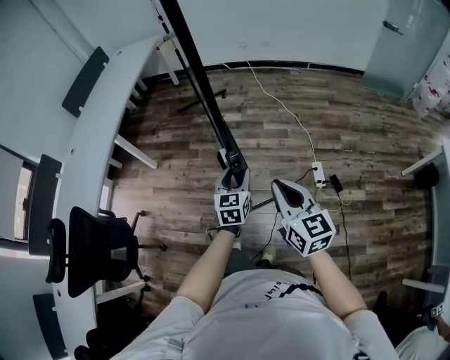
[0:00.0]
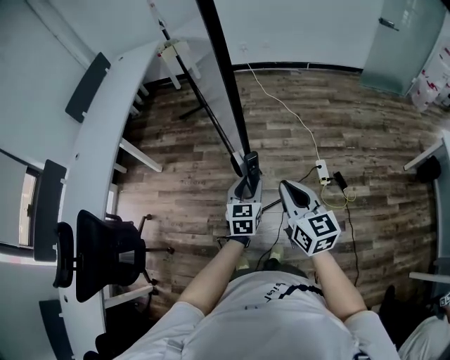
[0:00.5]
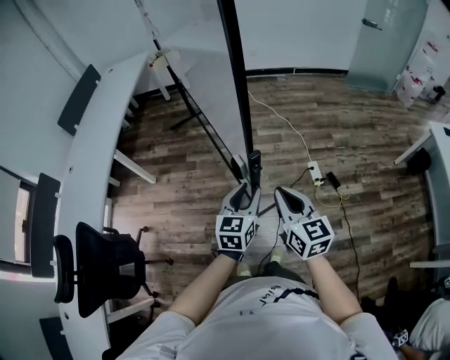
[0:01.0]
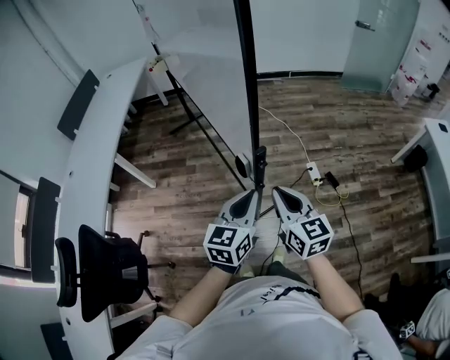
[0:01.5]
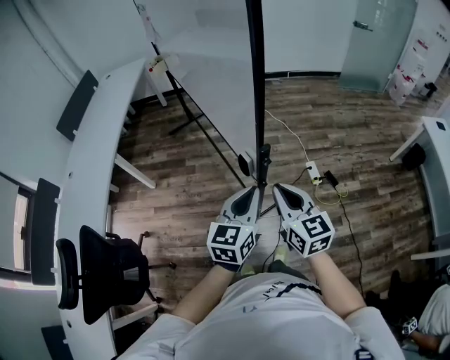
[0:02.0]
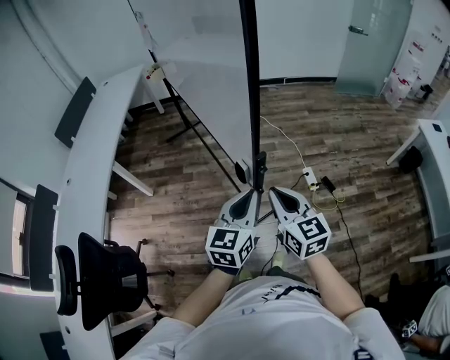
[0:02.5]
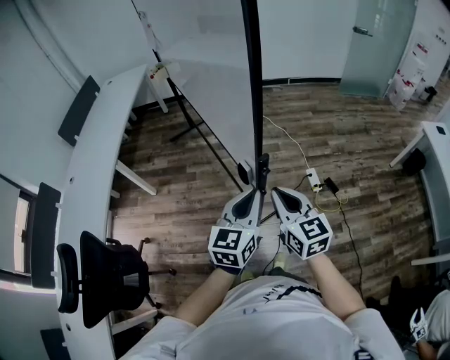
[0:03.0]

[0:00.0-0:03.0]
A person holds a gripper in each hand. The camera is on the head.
0:00.0 to 0:01.5: The left gripper moves backward and upward, approximately 20 cm, rotates roughly 20 degrees, and closes its fingers. The right gripper shifts about 10 cm to the left and backward.
0:01.5 to 0:03.0: There are only small adjustments of the grippers.

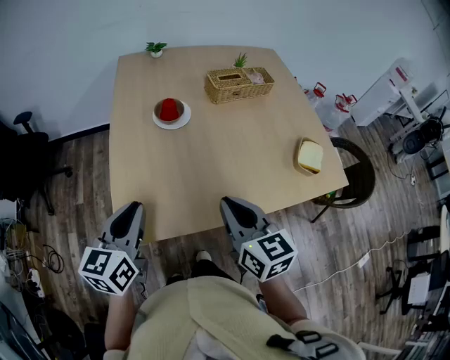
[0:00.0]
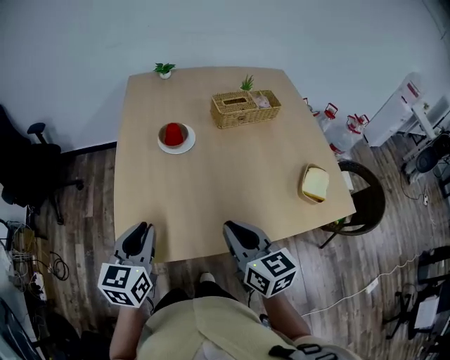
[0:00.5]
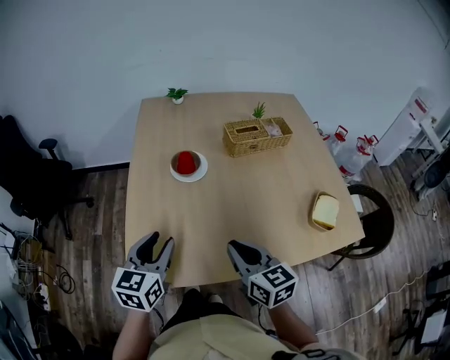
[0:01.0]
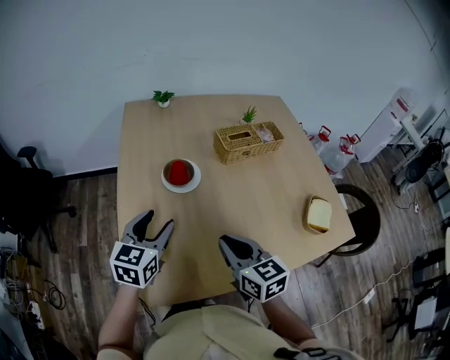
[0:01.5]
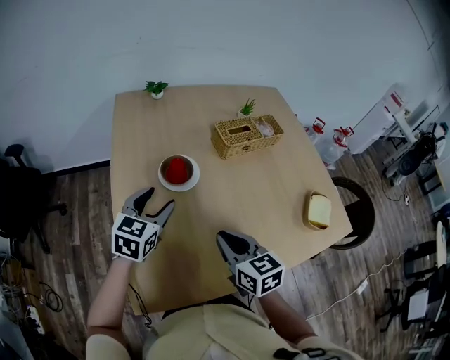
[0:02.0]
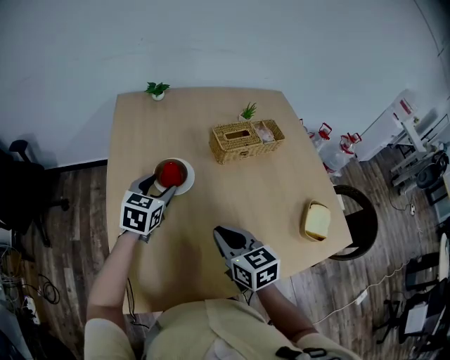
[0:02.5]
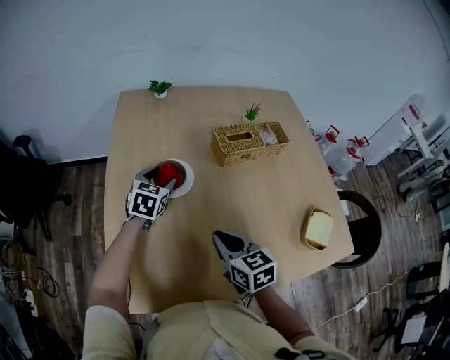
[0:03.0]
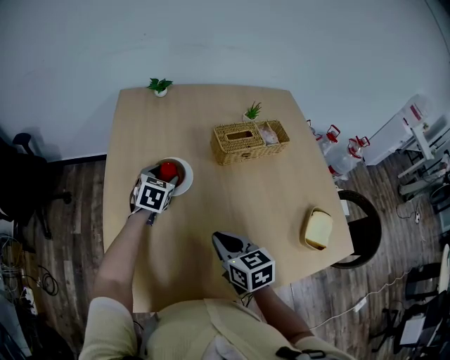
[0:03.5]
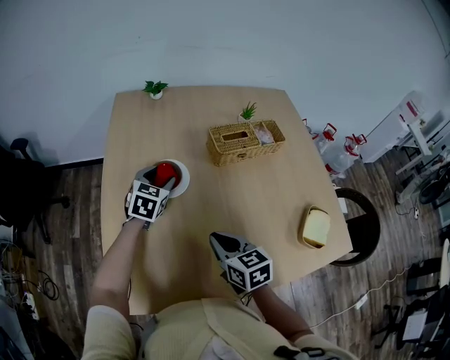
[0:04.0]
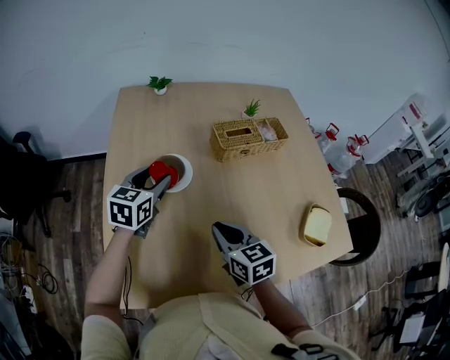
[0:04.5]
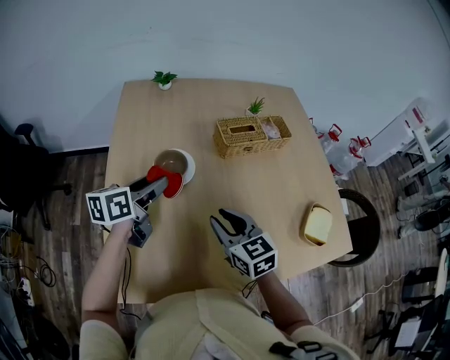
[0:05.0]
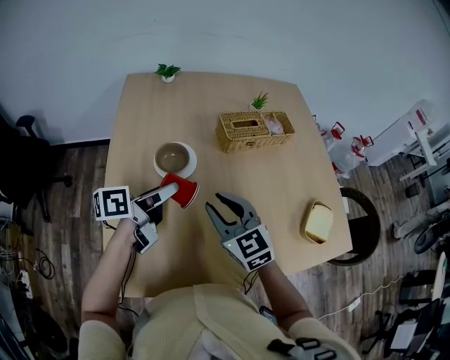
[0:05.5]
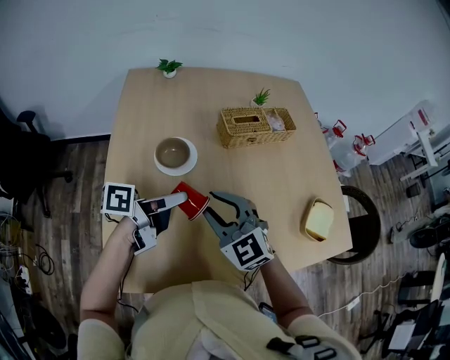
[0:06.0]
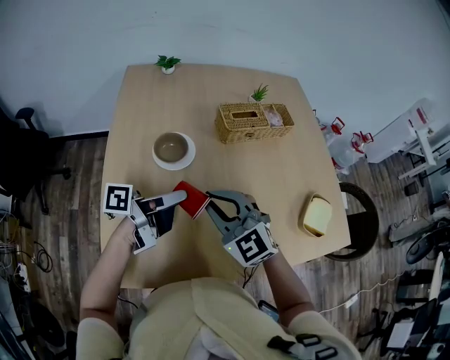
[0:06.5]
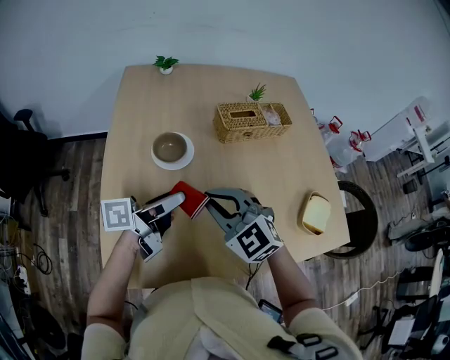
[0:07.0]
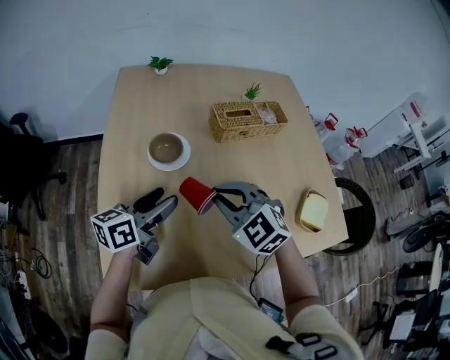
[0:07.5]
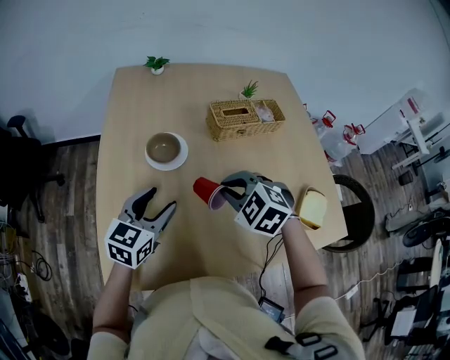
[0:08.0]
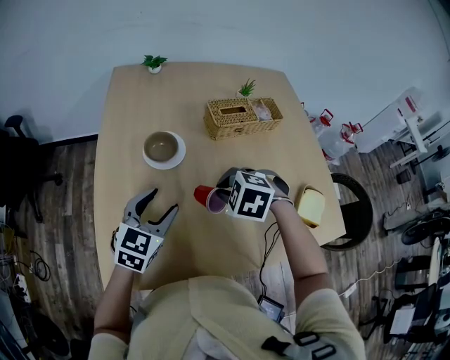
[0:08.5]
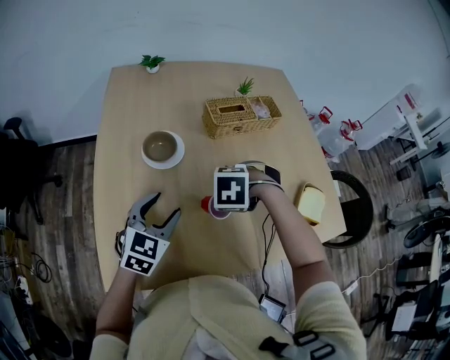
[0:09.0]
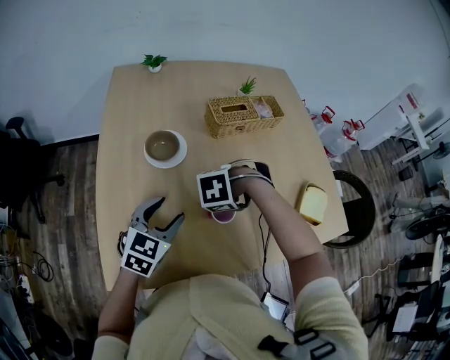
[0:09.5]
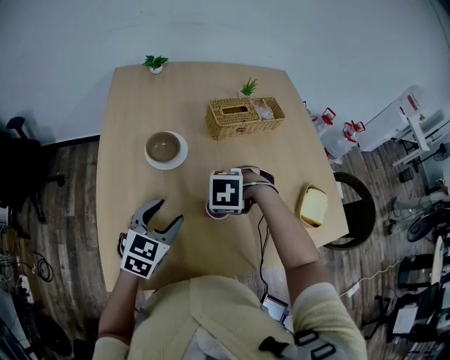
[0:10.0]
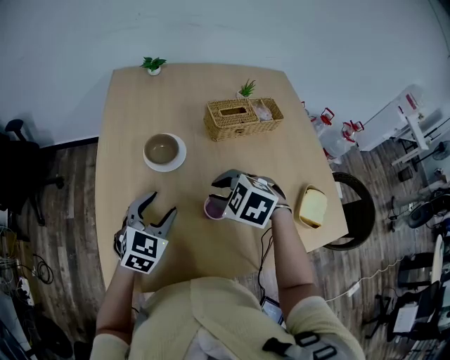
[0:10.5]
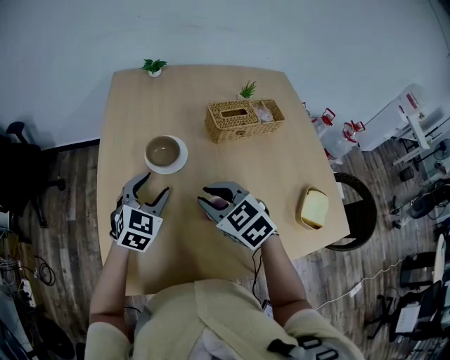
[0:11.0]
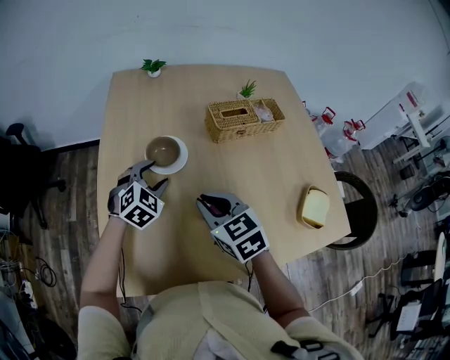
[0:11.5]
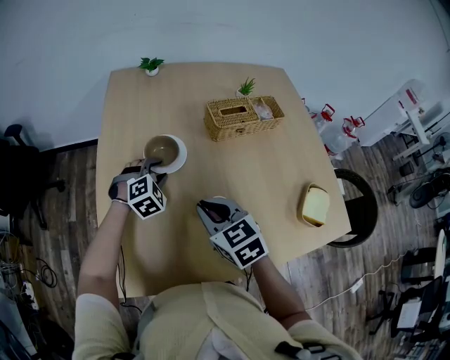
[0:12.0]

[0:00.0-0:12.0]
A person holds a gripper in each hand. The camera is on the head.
0:00.0 to 0:02.0: The left gripper travels forward by some 25 cm, changes its angle by roughly 20 degrees, and opens up; the right gripper goes about 15 cm forward.
0:02.0 to 0:04.0: The left gripper shifts approximately 15 cm forward, to the right and downward. Meanwhile the right gripper travels to the right by approximately 5 cm.
0:04.0 to 0:06.0: The right gripper heads upward, covering approximately 5 cm, rotates around the line of its fingers by about 40 degrees, counterclockwise from behind, and opens its fingers; the left gripper moves backward, approximately 15 cm, and rotates around the line of its fingers by roughly 70 degrees, counterclockwise from behind.
0:06.0 to 0:08.0: The right gripper goes roughly 5 cm to the right, angles its fingers downward, by approximately 30 degrees, and closes up. The left gripper twists some 60 degrees clockwise, seen from behind.
0:08.0 to 0:10.0: The right gripper travels downward by approximately 10 cm, and angles its fingers downward, by approximately 30 degrees. The left gripper ends up roughly 5 cm from where it was.
0:10.0 to 0:12.0: The left gripper changes place by about 15 cm, rolls clockwise, seen from behind, by approximately 40 degrees, and closes up. Meanwhile the right gripper is displaced upward by approximately 10 cm, and points its fingers about 50 degrees further upward.

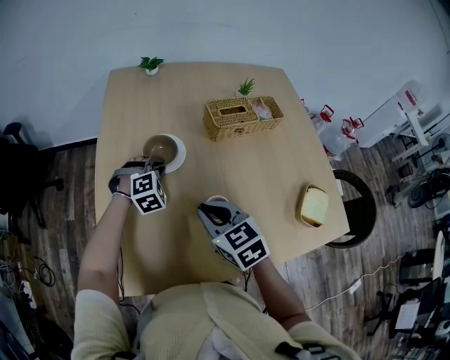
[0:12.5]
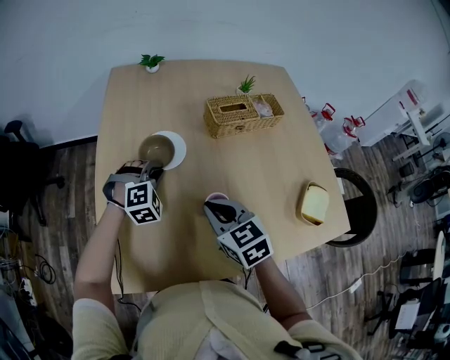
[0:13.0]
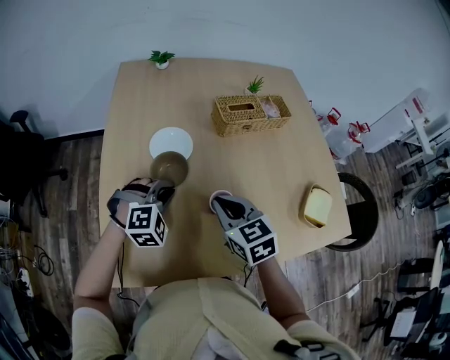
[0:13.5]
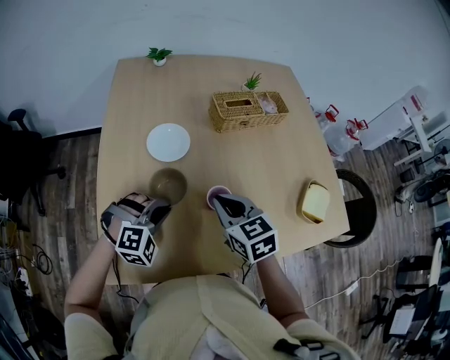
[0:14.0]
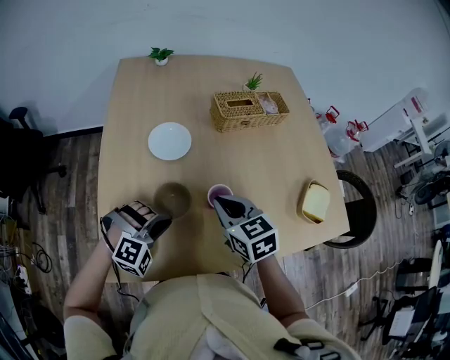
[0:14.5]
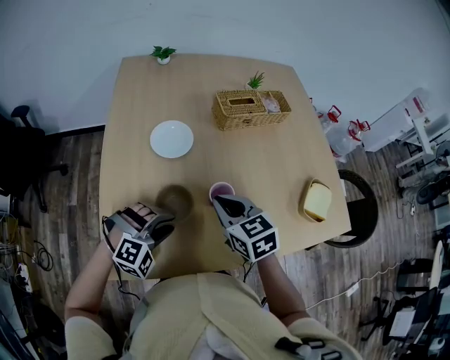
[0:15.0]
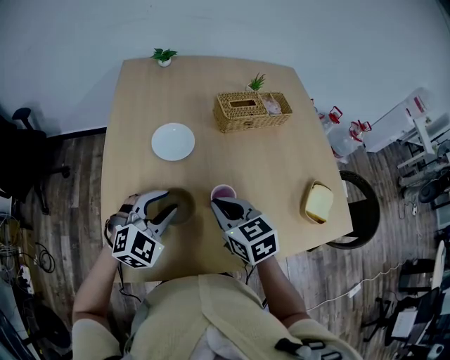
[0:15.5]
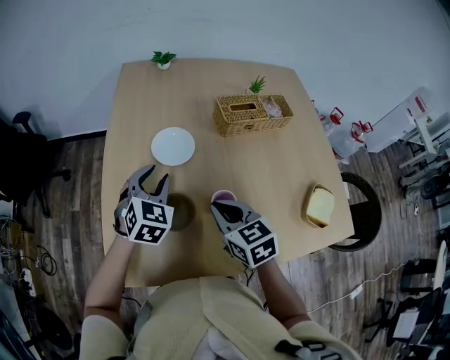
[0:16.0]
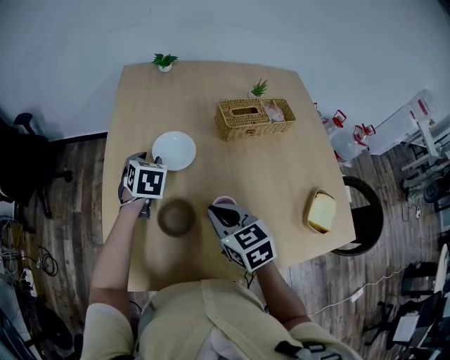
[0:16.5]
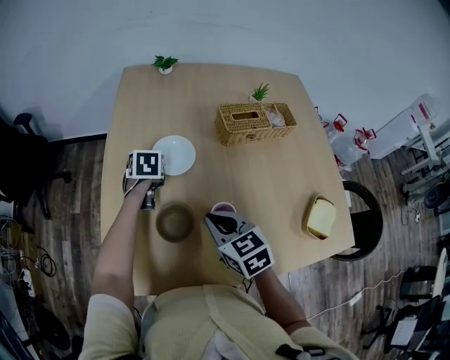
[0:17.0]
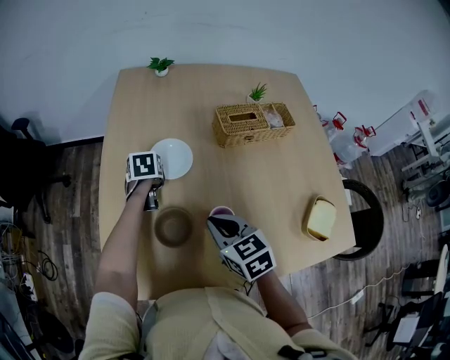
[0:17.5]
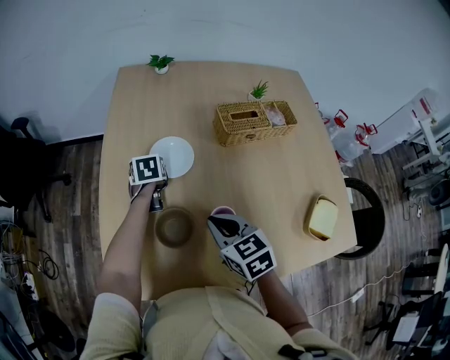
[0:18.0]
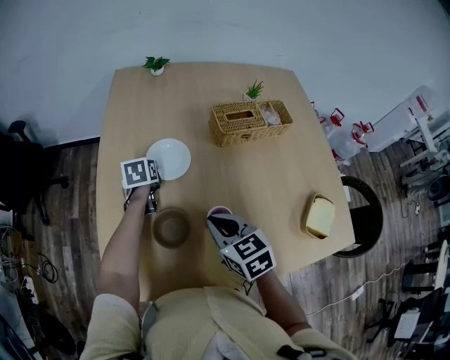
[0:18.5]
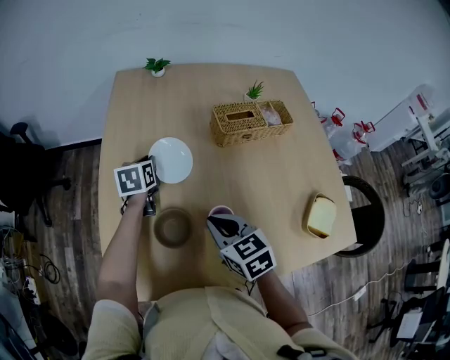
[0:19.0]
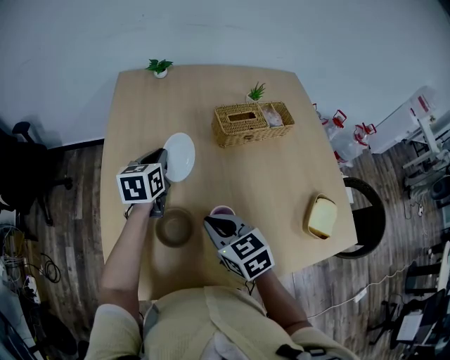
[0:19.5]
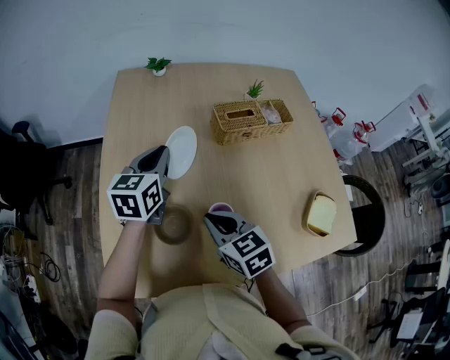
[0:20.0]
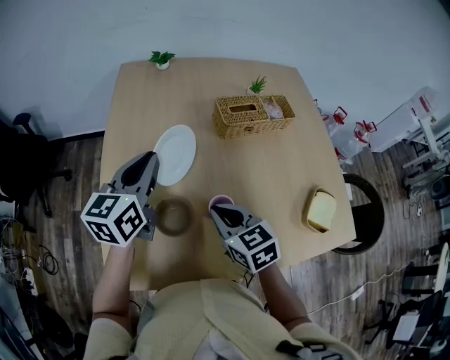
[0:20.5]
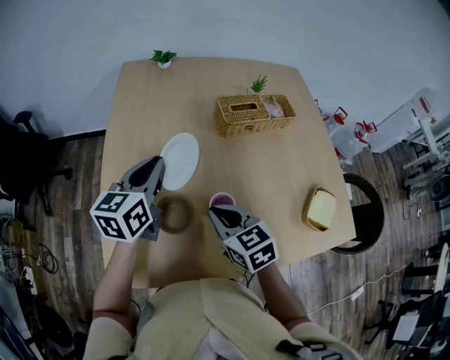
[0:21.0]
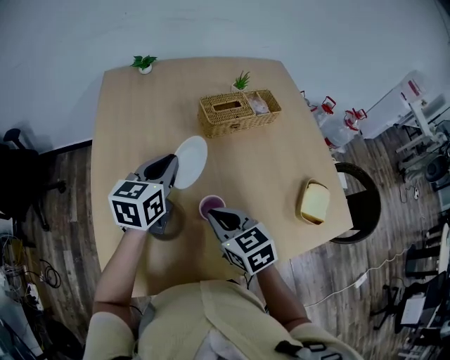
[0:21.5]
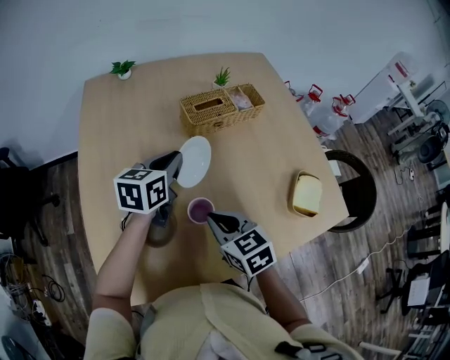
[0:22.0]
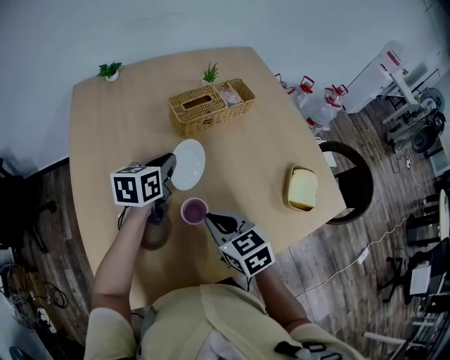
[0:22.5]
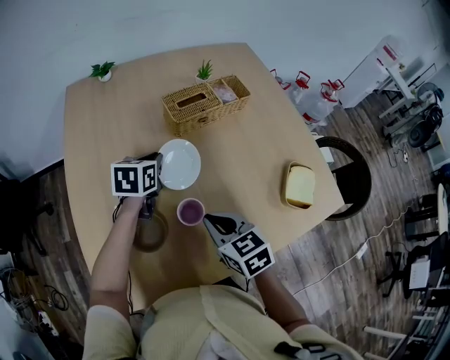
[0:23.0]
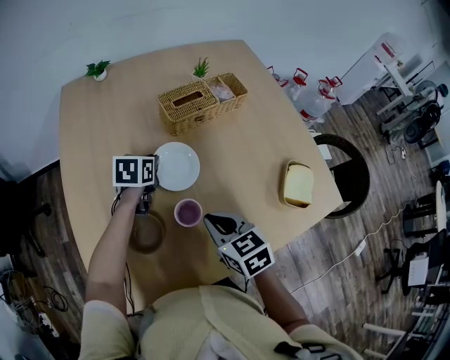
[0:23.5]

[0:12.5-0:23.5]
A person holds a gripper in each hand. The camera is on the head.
0:12.5 to 0:14.5: The left gripper heads backward, covering about 20 cm, and turns by some 30 degrees.
0:14.5 to 0:16.0: The left gripper travels forward and upward by about 15 cm, rolls counterclockwise, seen from behind, by approximately 60 degrees, and opens its fingers.
0:16.0 to 0:18.0: The left gripper heads forward and downward, covering about 20 cm, and twists roughly 40 degrees counterclockwise, seen from behind.
0:18.0 to 0:20.0: The left gripper goes roughly 20 cm upward, points its fingers approximately 30 degrees further upward, and closes.
0:20.0 to 0:21.5: The left gripper moves about 5 cm.
0:21.5 to 0:23.5: The left gripper moves downward and forward, roughly 15 cm, and changes its angle by some 30 degrees; the right gripper moves to the right, roughly 5 cm.
